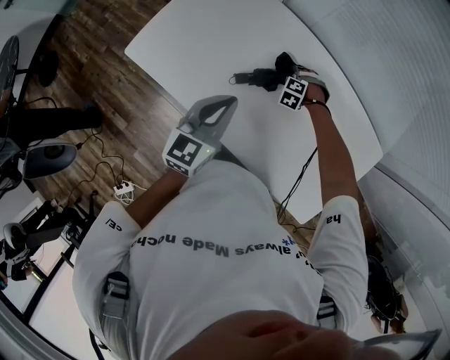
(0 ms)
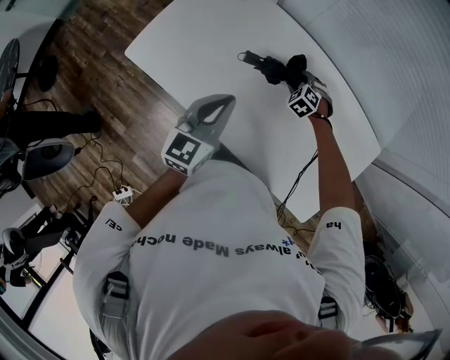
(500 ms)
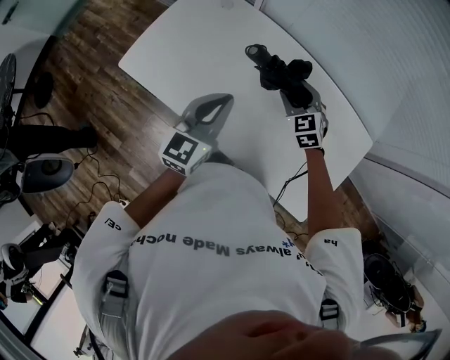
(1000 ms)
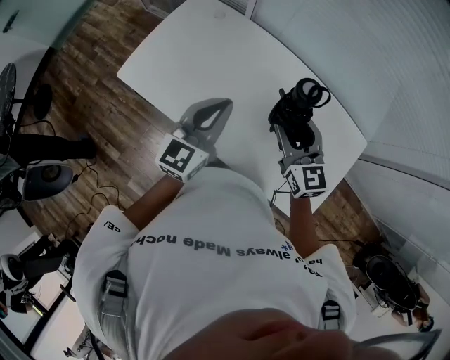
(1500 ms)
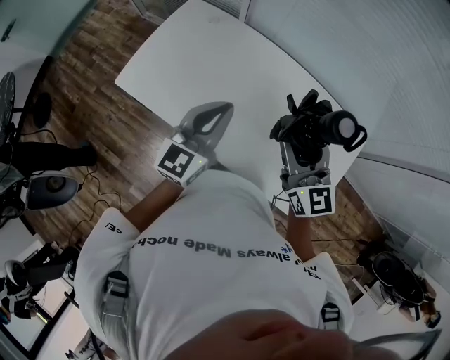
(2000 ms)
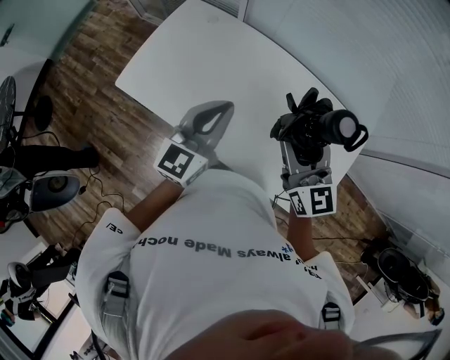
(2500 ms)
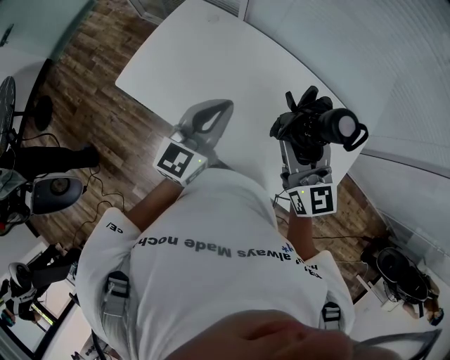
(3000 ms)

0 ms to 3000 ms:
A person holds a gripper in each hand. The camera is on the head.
0 ms to 1500 ms: The left gripper is displaced upward by about 10 cm. The right gripper moves upward, some 40 cm, and points its fingers roughly 60 degrees further upward.
1500 ms to 3000 ms: The right gripper shifts some 10 cm upward.

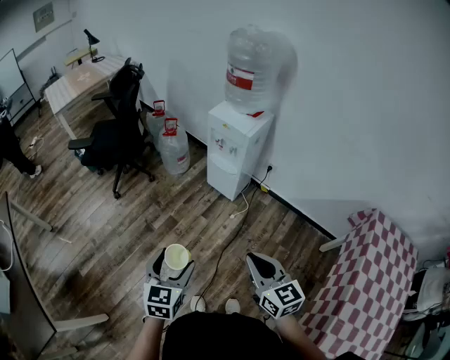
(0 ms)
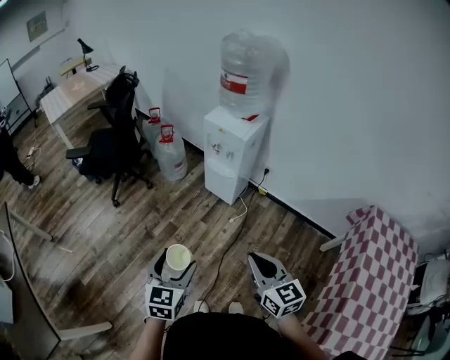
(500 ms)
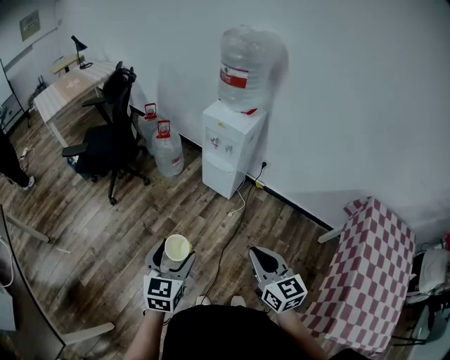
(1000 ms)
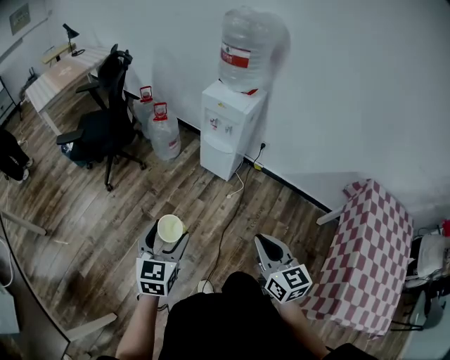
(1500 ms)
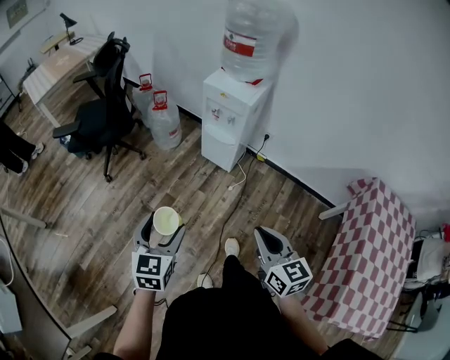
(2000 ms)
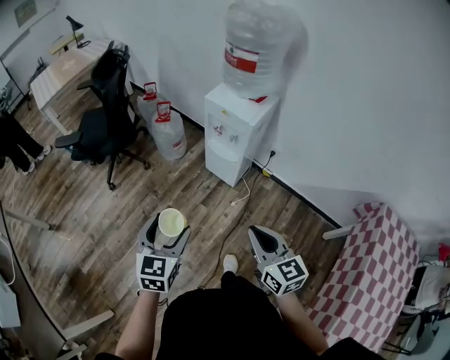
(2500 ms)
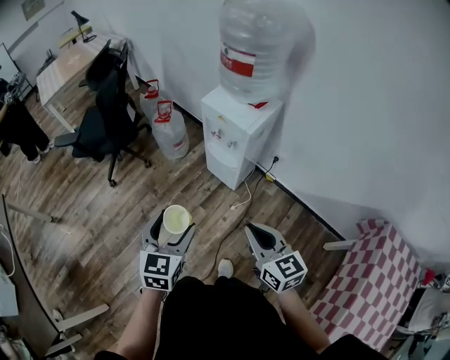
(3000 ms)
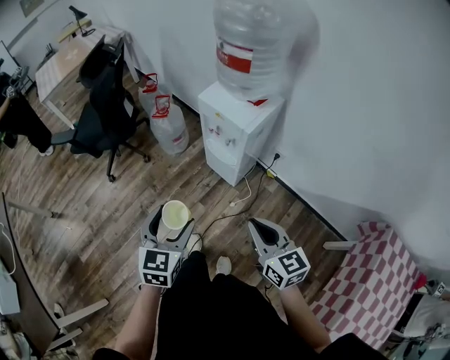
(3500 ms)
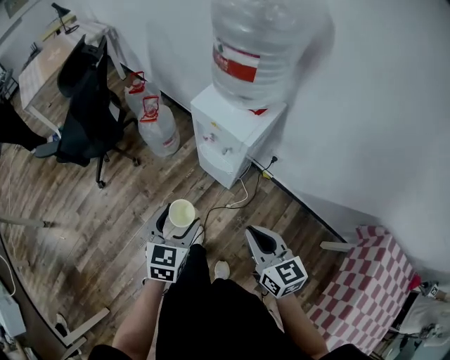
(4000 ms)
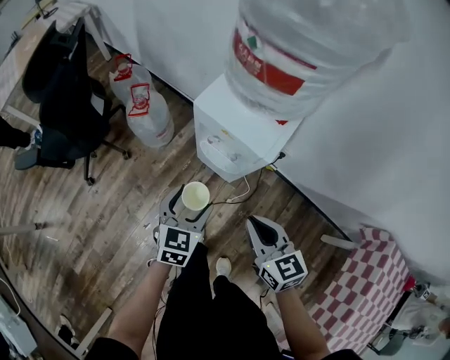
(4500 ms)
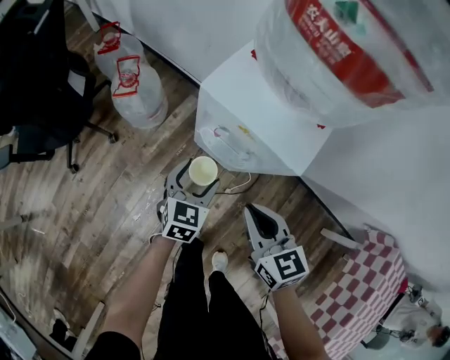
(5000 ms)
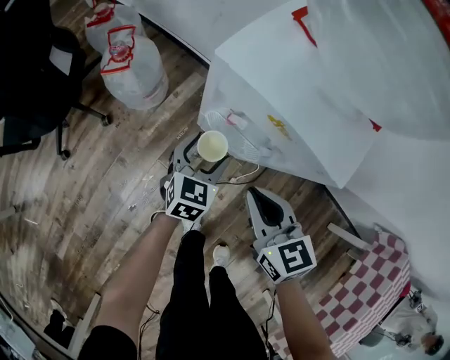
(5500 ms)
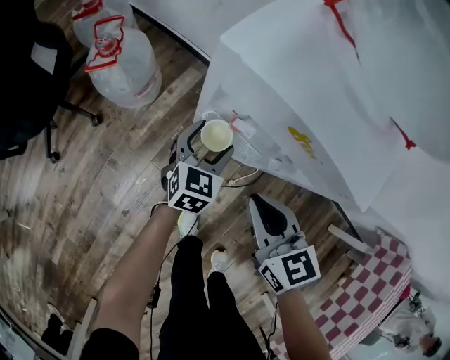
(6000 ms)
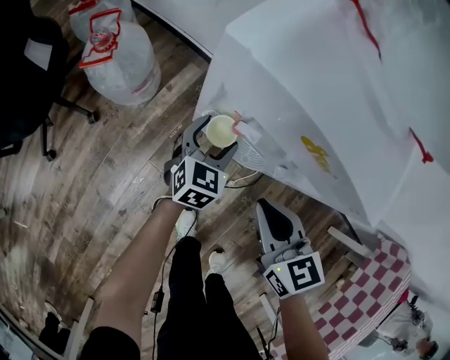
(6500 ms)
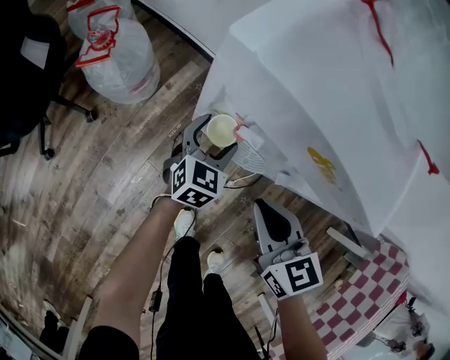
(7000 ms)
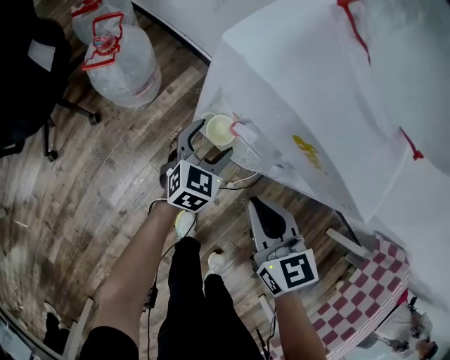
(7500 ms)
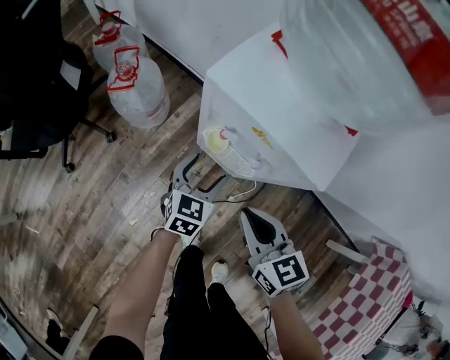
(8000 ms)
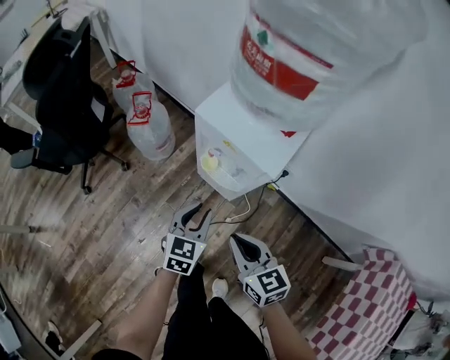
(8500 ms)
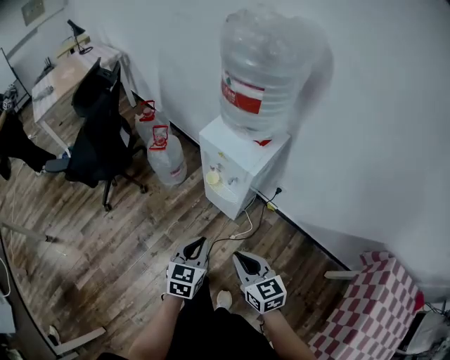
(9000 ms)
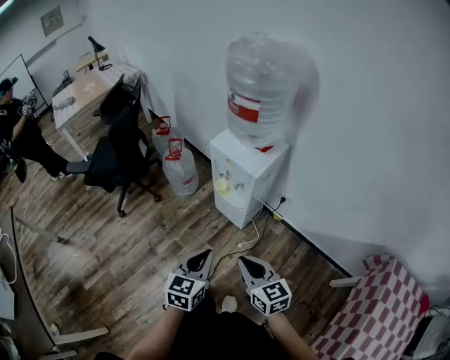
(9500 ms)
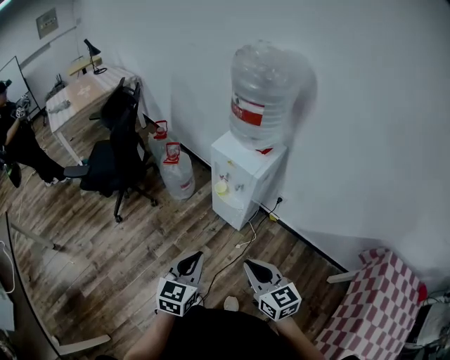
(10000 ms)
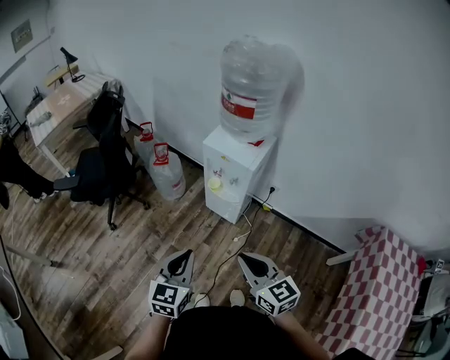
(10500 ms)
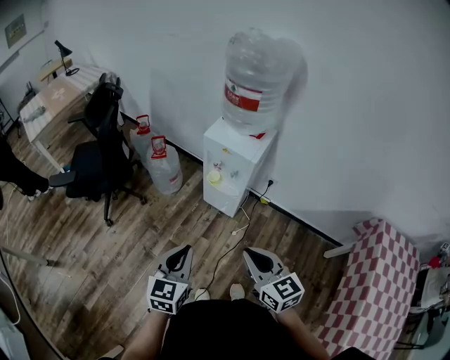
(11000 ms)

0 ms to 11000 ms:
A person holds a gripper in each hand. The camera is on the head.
0 ms to 2000 ms: The left gripper goes some 10 cm forward and to the left.
2000 ms to 3500 ms: The grippers both shift forward and to the right by some 25 cm.
3500 ms to 5500 ms: Both grippers travel together forward and downward, roughly 50 cm.
5500 ms to 7500 ms: Both grippers travel together downward, roughly 5 cm.
7500 ms to 9000 ms: The left gripper heads upward and backward, covering about 50 cm, and closes; the right gripper heads backward and upward, covering approximately 35 cm.
9000 ms to 11000 ms: The right gripper travels upward, backward and to the left by some 20 cm. Meanwhile the left gripper heads to the left, upward and backward, covering about 20 cm.

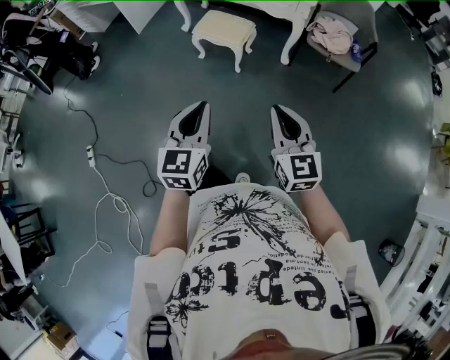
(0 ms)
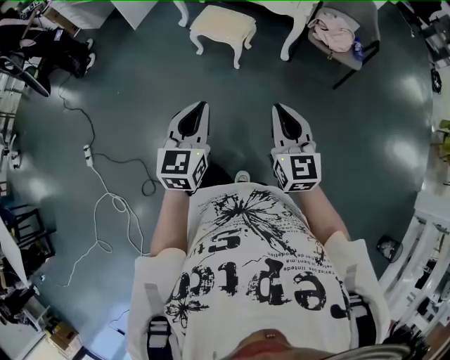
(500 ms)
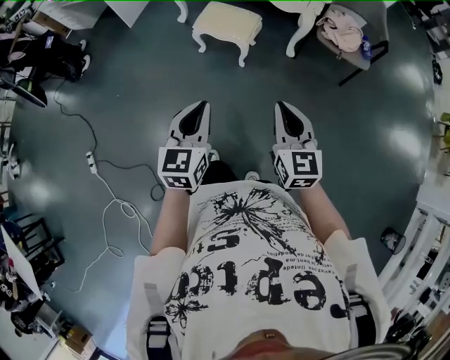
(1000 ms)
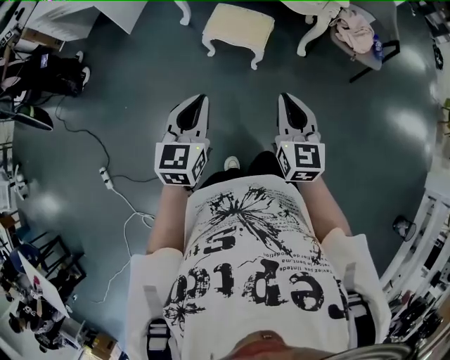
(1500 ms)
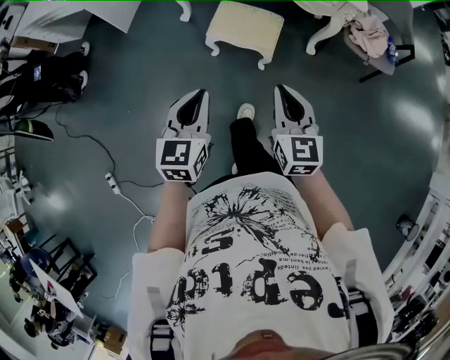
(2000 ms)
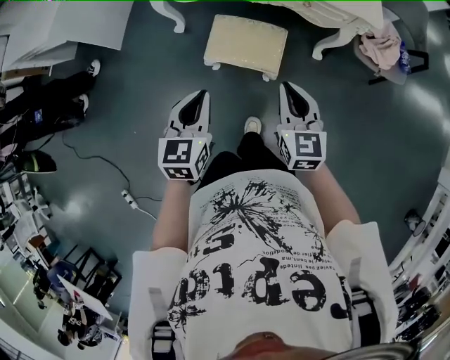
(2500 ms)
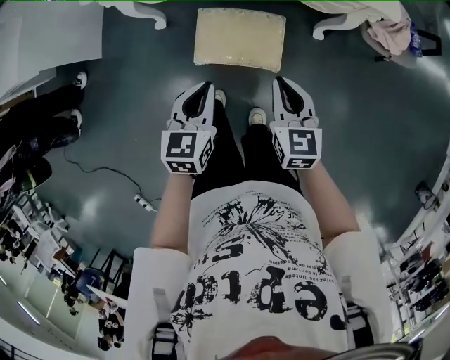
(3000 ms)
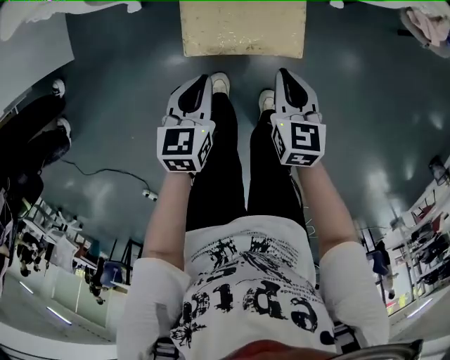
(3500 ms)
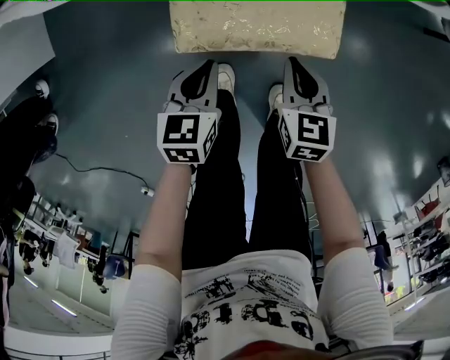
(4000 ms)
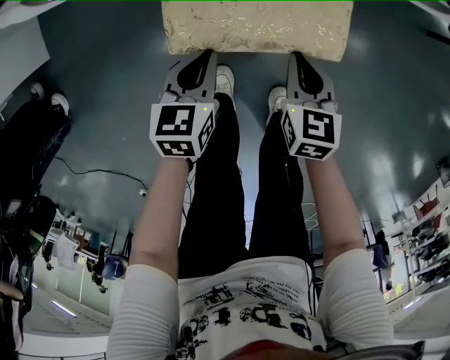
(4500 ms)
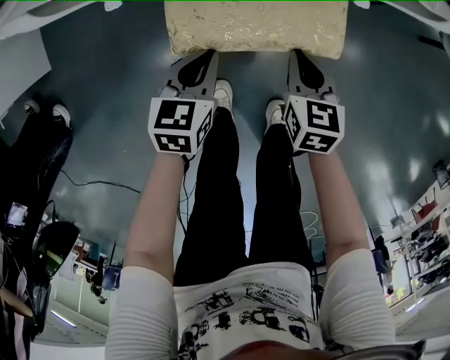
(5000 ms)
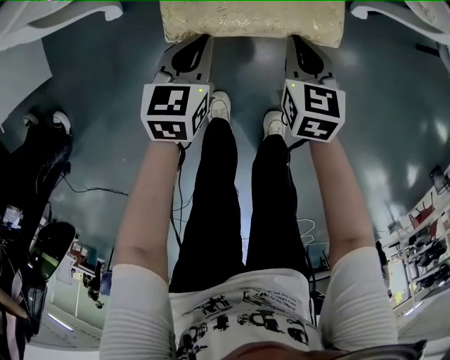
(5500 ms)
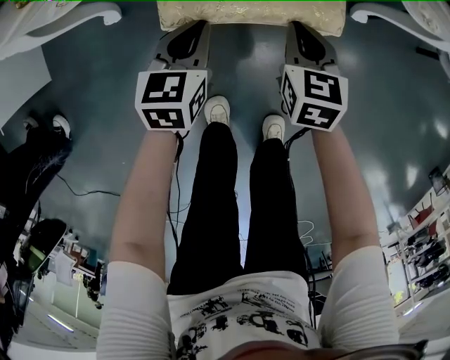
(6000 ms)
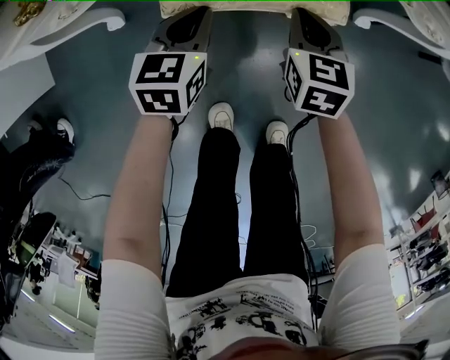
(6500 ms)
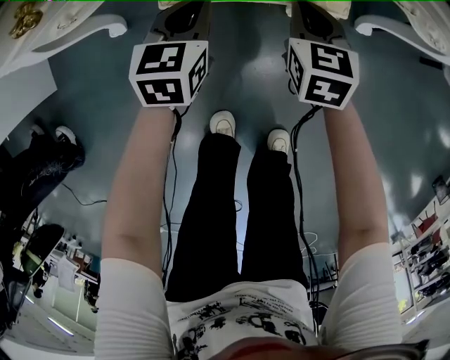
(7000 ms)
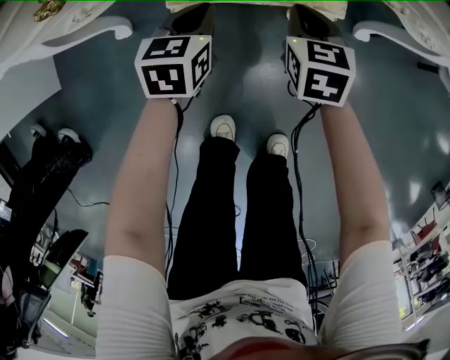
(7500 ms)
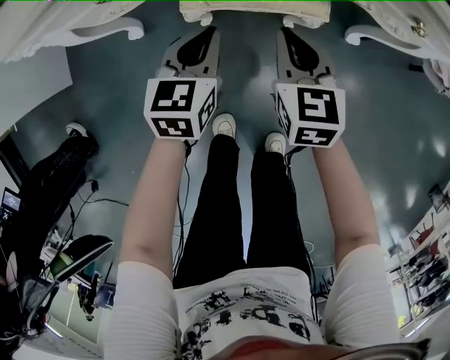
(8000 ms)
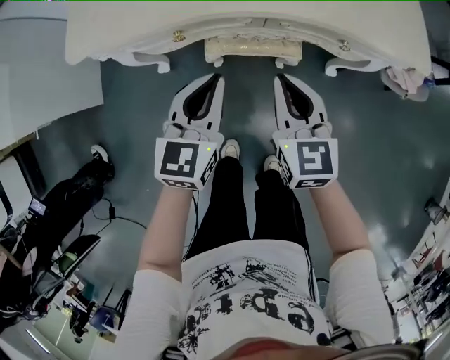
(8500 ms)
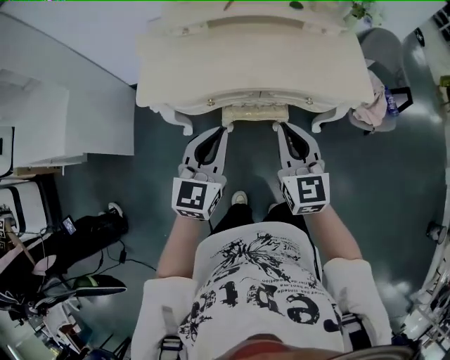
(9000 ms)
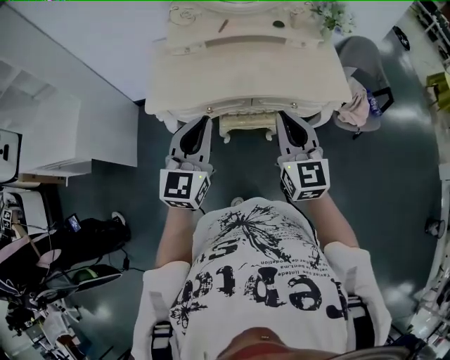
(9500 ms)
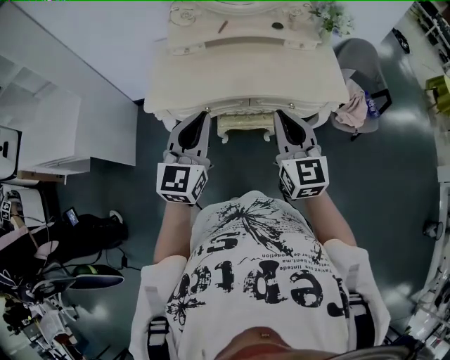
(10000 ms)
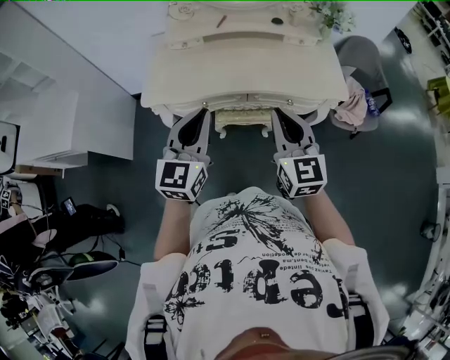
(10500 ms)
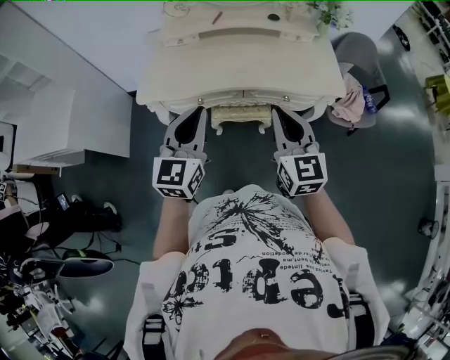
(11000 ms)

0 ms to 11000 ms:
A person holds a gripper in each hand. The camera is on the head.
0 ms to 2000 ms: The two grippers travel together, forward and to the left, roughly 40 cm.
2000 ms to 3500 ms: The left gripper heads forward and downward, covering about 50 cm, and rotates approximately 30 degrees, while the right gripper is displaced downward and forward by approximately 50 cm, and changes its angle by approximately 30 degrees.
3500 ms to 5500 ms: Both grippers move downward and forward, about 20 cm.
5500 ms to 7500 ms: The grippers both shift forward by about 10 cm.
7500 ms to 9000 ms: Both grippers move upward, about 60 cm. The left gripper rotates about 30 degrees. Meanwhile the right gripper points its fingers about 30 degrees further upward.
9000 ms to 11000 ms: The two grippers go approximately 10 cm upward.

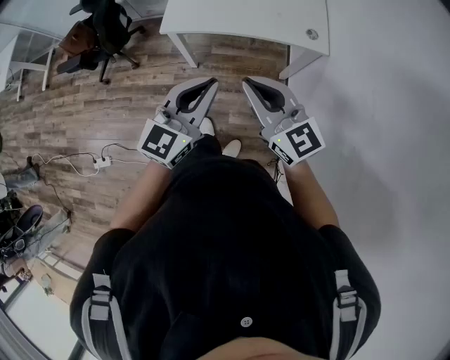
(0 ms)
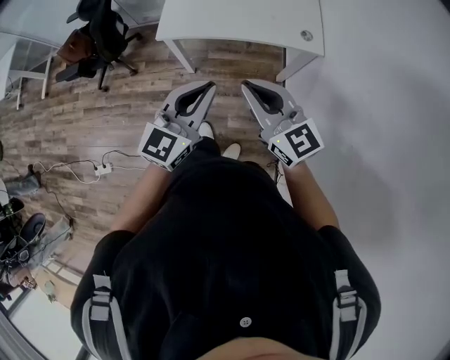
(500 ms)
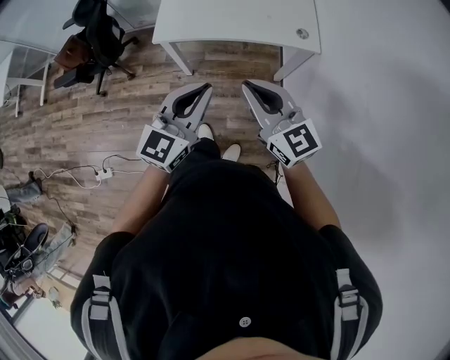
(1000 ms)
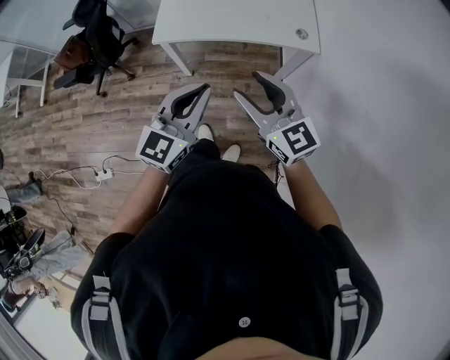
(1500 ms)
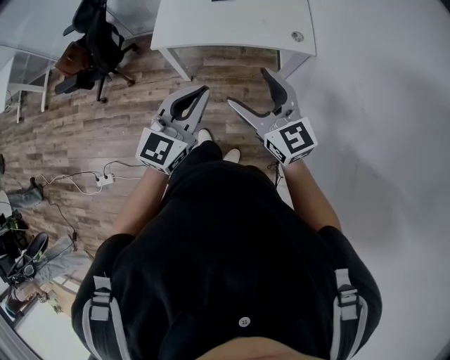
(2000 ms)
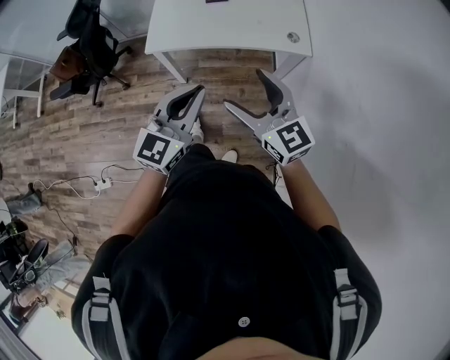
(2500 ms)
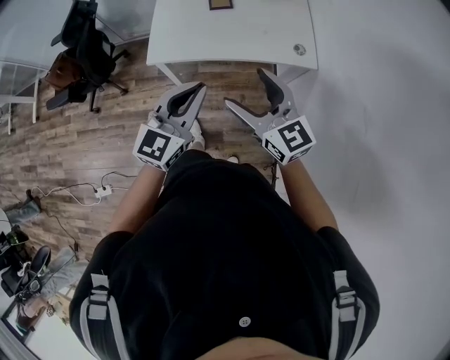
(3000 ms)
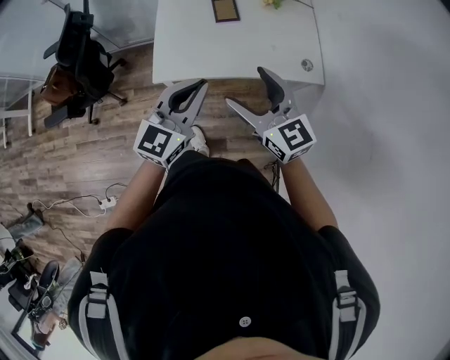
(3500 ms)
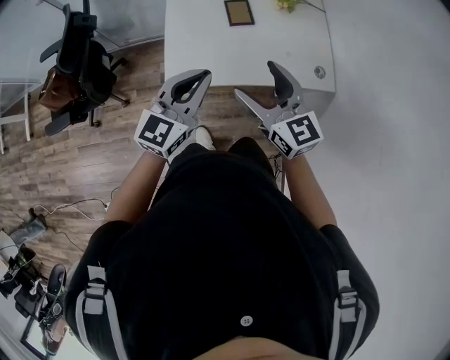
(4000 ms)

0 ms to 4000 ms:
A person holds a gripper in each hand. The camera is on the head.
0 ms to 2000 ms: The right gripper opens.
2000 ms to 4000 ms: Both grippers travel together forward and to the left, about 30 cm.
